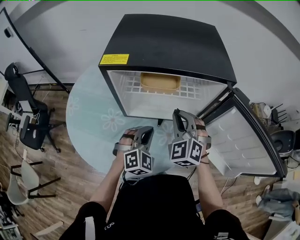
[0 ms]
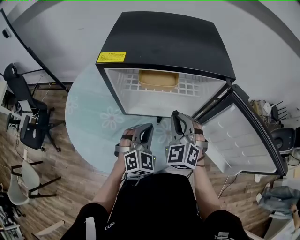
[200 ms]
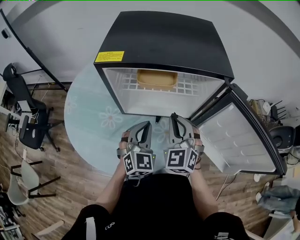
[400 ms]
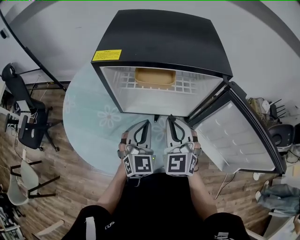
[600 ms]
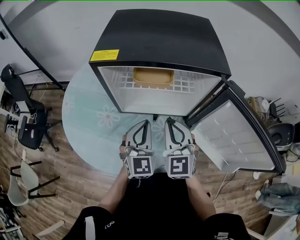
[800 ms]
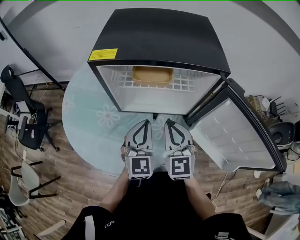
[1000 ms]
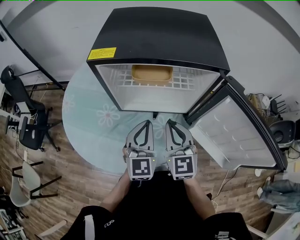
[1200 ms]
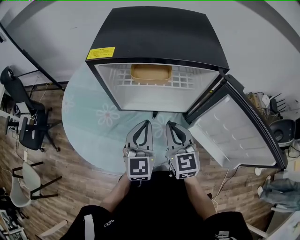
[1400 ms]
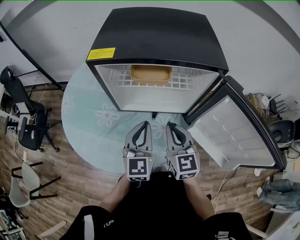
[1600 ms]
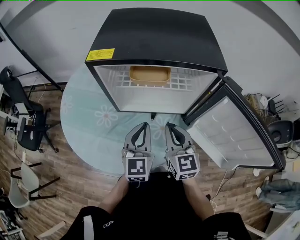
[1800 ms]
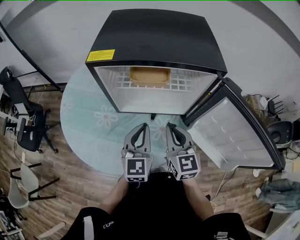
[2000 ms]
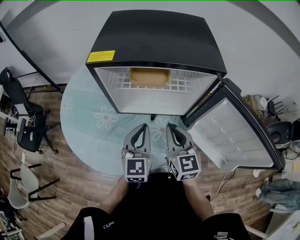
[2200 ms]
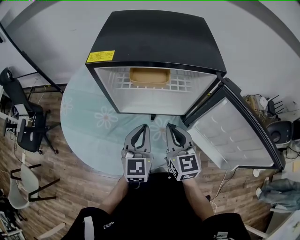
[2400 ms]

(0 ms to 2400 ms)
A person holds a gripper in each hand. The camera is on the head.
0 ms - 1200 ms: The left gripper is displaced upward by roughly 10 cm, and changes its angle by roughly 50 degrees, while the right gripper moves backward, roughly 5 cm, and turns by roughly 40 degrees.
1200 ms - 2400 ms: The grippers move only a little.

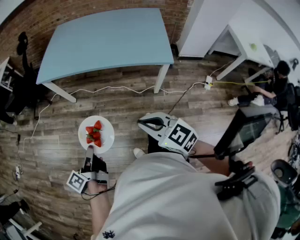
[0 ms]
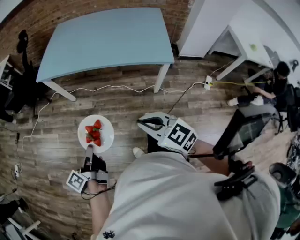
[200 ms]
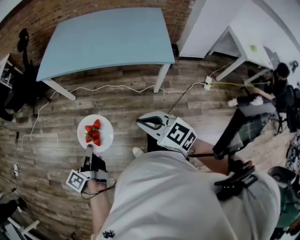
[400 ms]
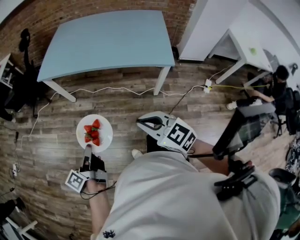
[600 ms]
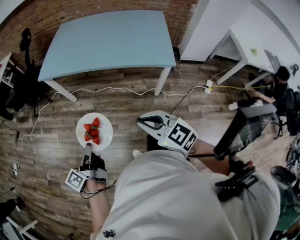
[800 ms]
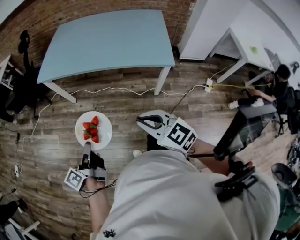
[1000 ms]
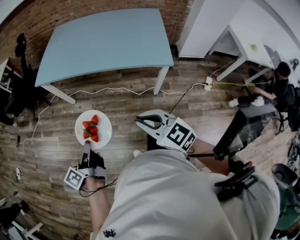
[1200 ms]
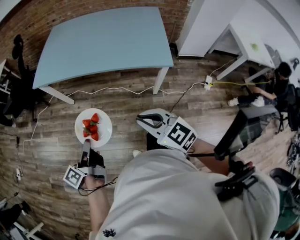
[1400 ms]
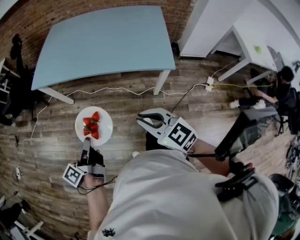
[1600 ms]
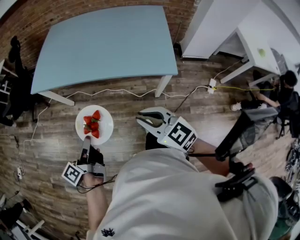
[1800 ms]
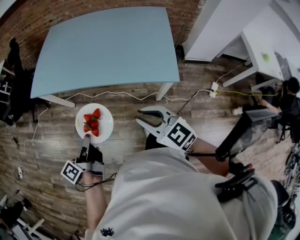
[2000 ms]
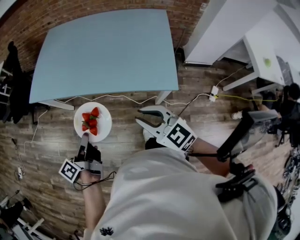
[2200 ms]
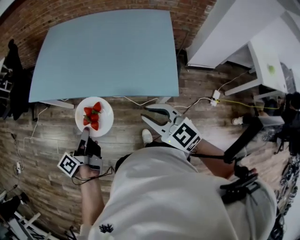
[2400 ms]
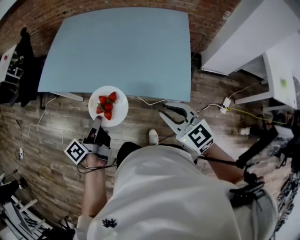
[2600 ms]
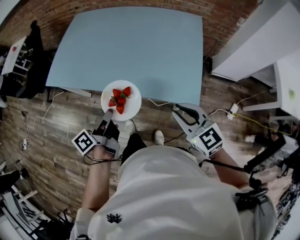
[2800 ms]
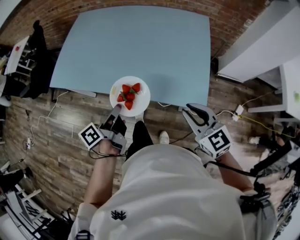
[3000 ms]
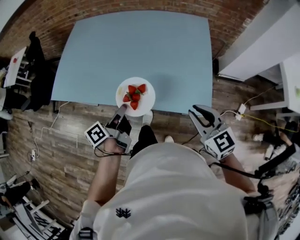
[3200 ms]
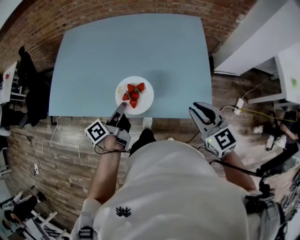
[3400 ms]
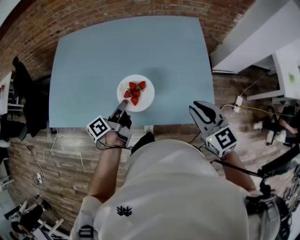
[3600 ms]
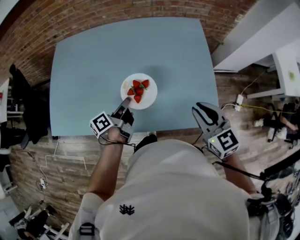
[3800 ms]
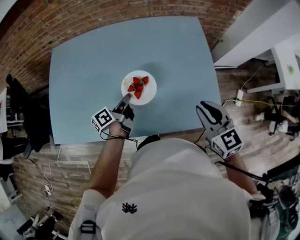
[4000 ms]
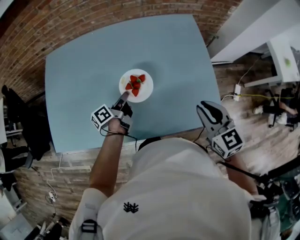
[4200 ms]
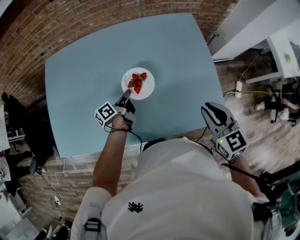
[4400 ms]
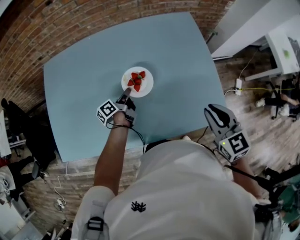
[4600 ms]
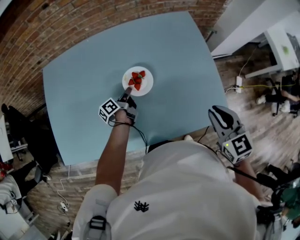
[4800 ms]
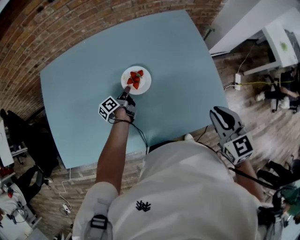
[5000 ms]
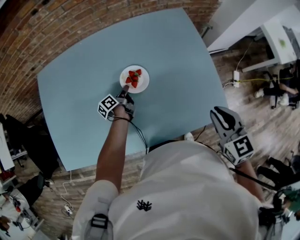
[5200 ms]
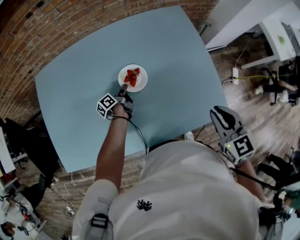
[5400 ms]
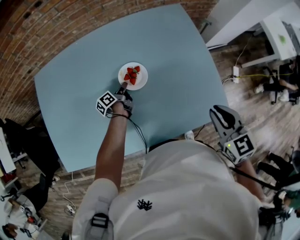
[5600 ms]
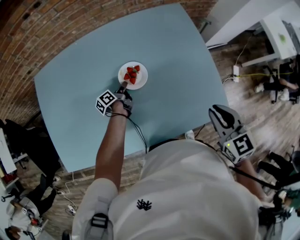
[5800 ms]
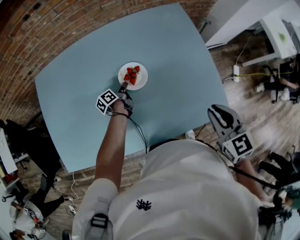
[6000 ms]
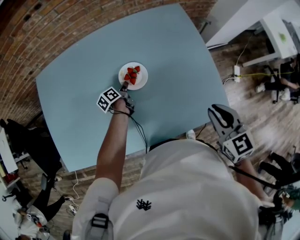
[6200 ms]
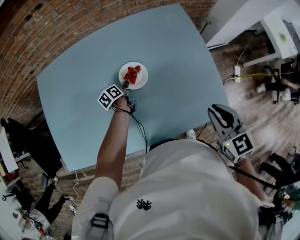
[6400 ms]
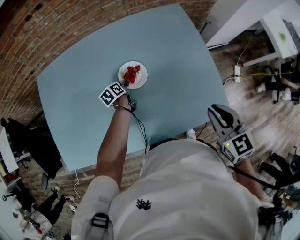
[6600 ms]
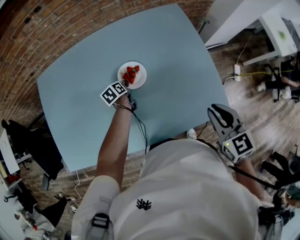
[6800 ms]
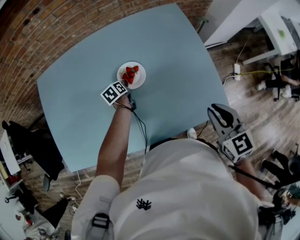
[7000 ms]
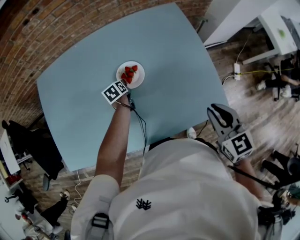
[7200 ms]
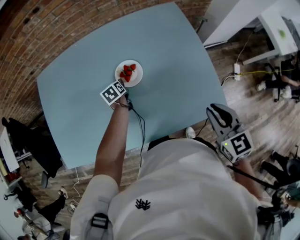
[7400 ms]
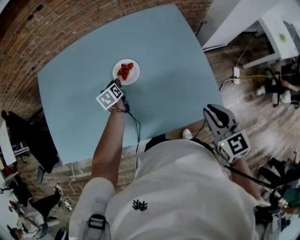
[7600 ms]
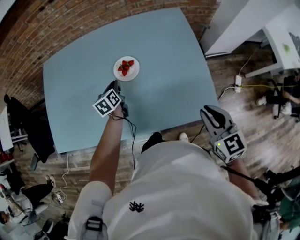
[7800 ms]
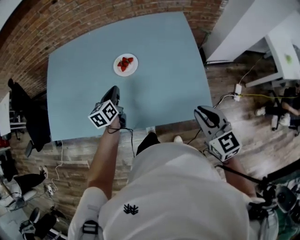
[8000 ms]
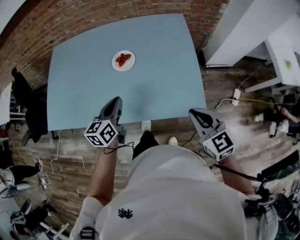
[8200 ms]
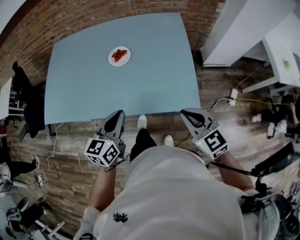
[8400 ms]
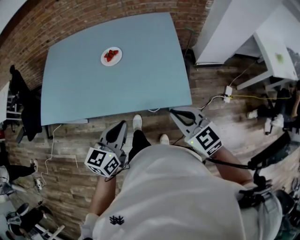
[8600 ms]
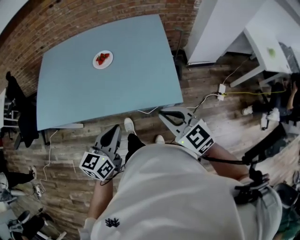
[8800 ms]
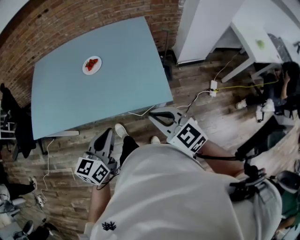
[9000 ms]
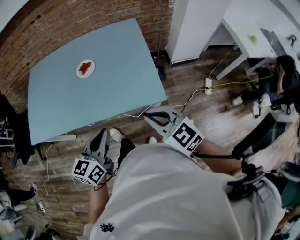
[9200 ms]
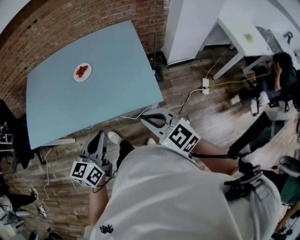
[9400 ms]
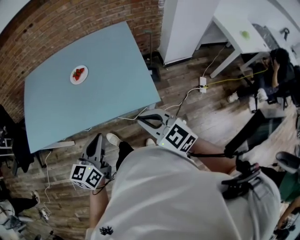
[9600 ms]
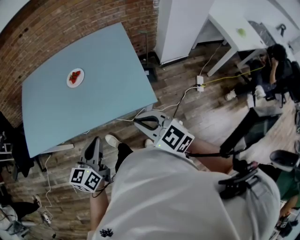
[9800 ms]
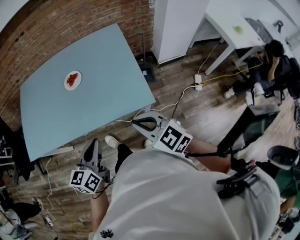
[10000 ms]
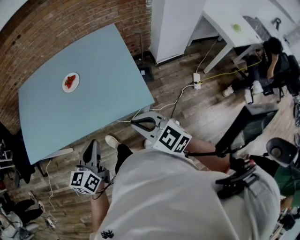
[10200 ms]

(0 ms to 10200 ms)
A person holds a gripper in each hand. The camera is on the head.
0 ms - 1400 ms: The right gripper moves about 5 cm, while the left gripper moves forward, roughly 5 cm.
1400 ms - 3000 ms: The grippers both shift forward and to the right by roughly 40 cm.
3000 ms - 4400 ms: The left gripper ends up roughly 40 cm from where it was, and changes its angle by some 20 degrees. Meanwhile the right gripper changes place by roughly 20 cm, and rotates some 30 degrees.
4400 ms - 5800 ms: The left gripper shifts about 15 cm downward and forward.
5800 ms - 7200 ms: The left gripper changes its angle by about 50 degrees, and opens.
7200 ms - 8800 ms: The right gripper shifts roughly 20 cm backward, and turns by roughly 40 degrees; the left gripper moves backward and upward, about 60 cm, tilts its fingers approximately 30 degrees upward, and closes its fingers.
8800 ms - 10200 ms: There are only small adjustments of the grippers.

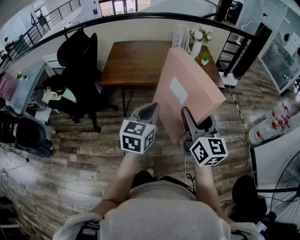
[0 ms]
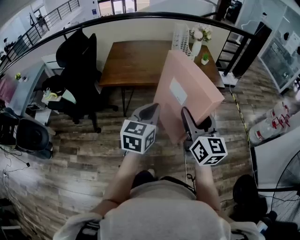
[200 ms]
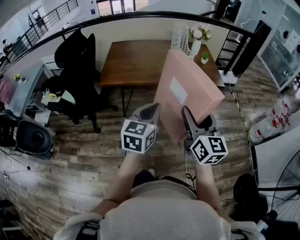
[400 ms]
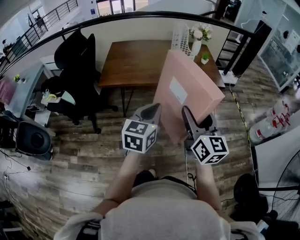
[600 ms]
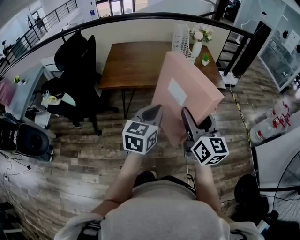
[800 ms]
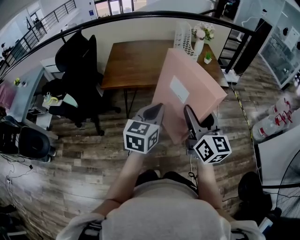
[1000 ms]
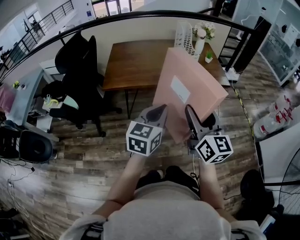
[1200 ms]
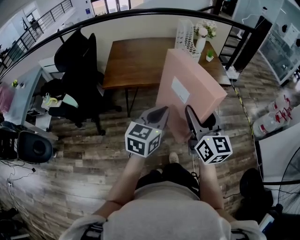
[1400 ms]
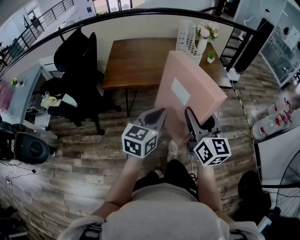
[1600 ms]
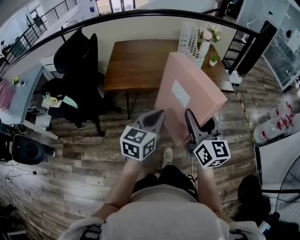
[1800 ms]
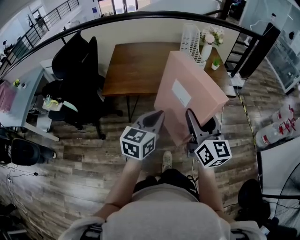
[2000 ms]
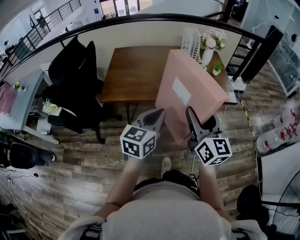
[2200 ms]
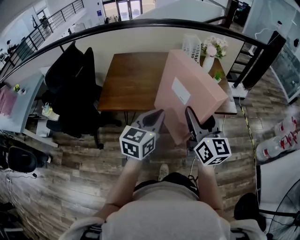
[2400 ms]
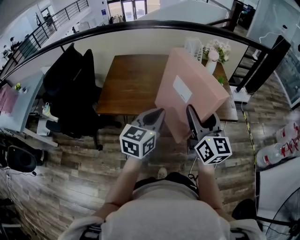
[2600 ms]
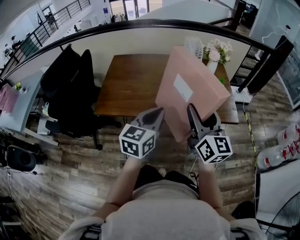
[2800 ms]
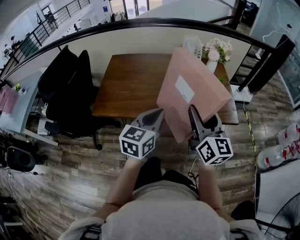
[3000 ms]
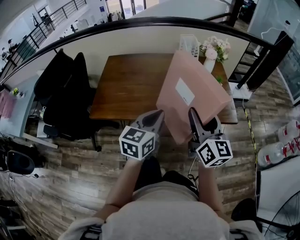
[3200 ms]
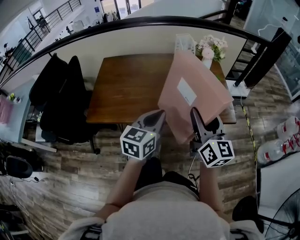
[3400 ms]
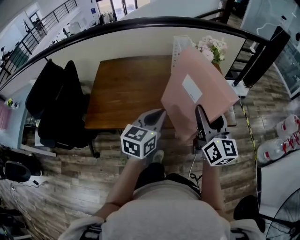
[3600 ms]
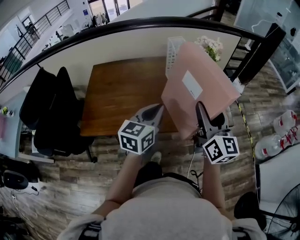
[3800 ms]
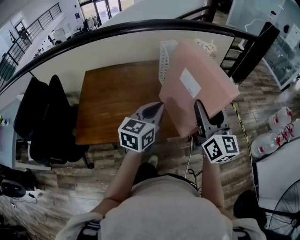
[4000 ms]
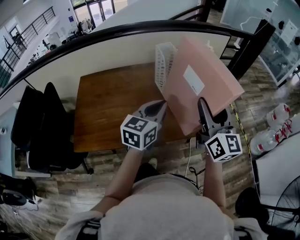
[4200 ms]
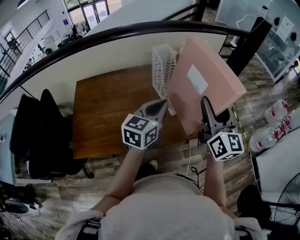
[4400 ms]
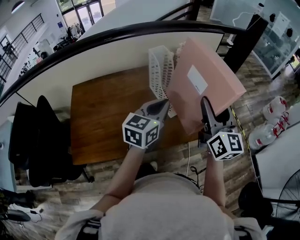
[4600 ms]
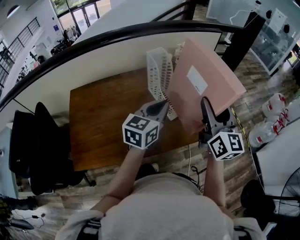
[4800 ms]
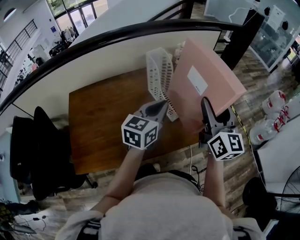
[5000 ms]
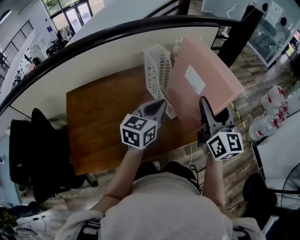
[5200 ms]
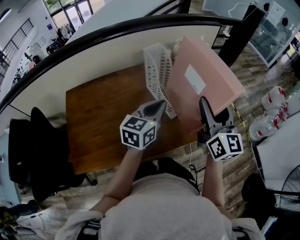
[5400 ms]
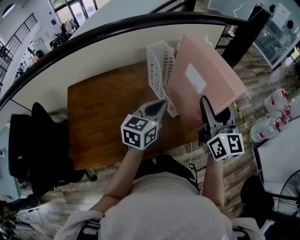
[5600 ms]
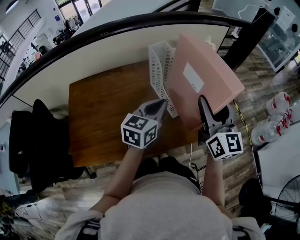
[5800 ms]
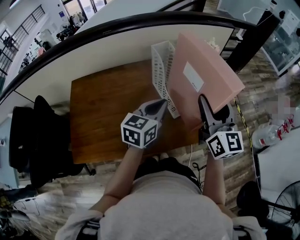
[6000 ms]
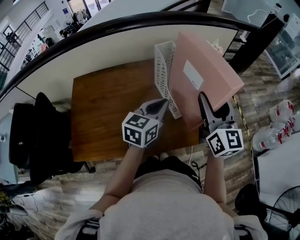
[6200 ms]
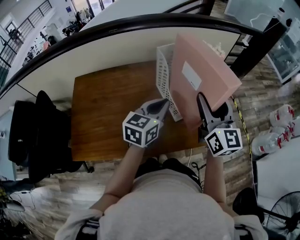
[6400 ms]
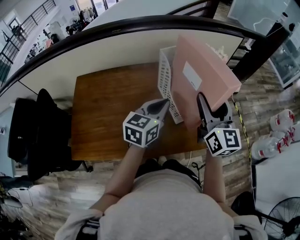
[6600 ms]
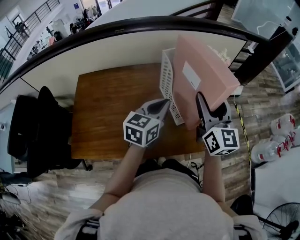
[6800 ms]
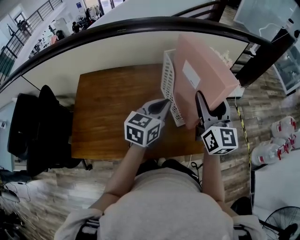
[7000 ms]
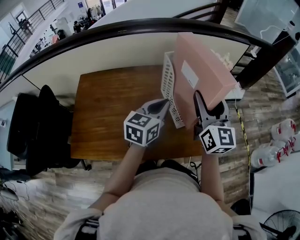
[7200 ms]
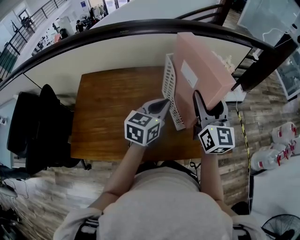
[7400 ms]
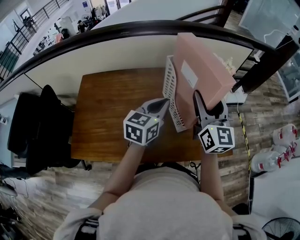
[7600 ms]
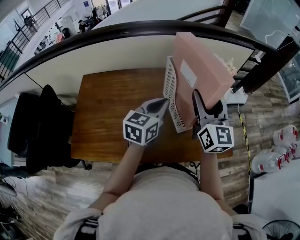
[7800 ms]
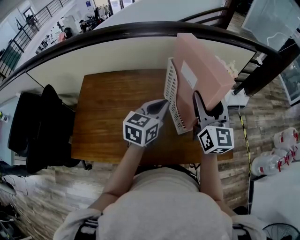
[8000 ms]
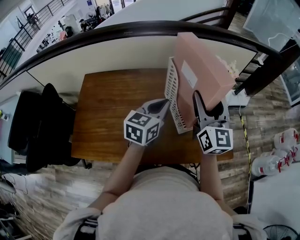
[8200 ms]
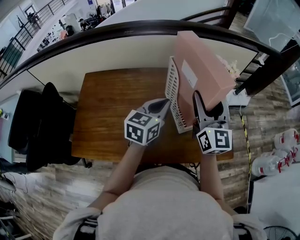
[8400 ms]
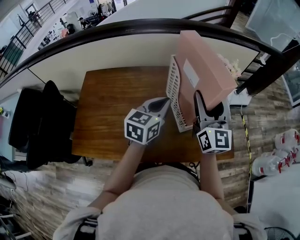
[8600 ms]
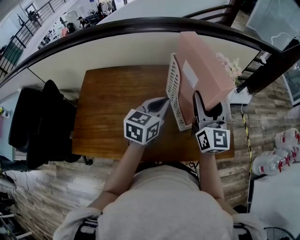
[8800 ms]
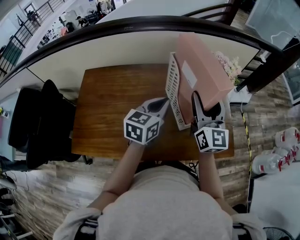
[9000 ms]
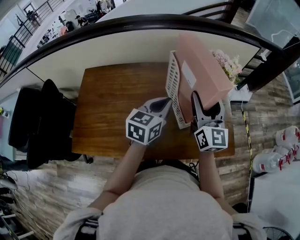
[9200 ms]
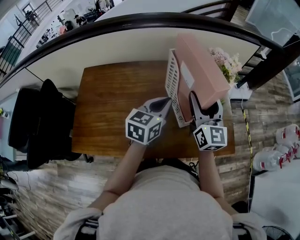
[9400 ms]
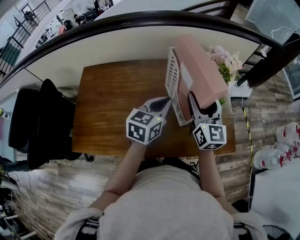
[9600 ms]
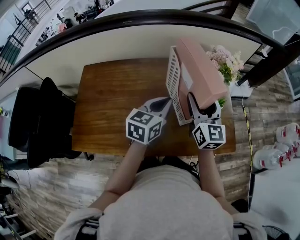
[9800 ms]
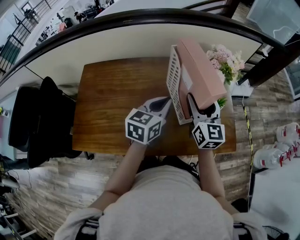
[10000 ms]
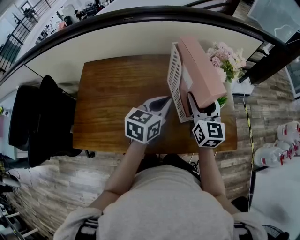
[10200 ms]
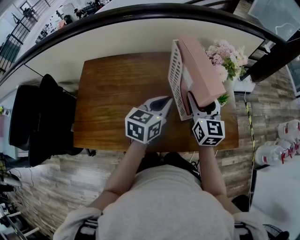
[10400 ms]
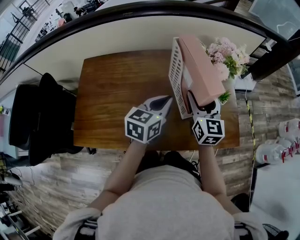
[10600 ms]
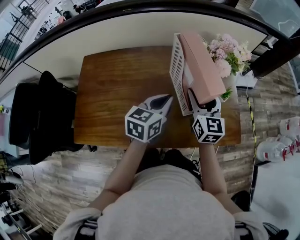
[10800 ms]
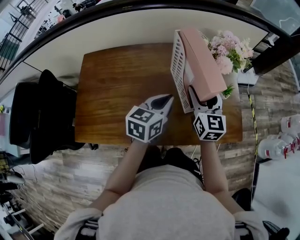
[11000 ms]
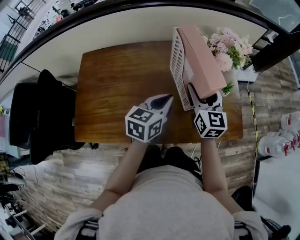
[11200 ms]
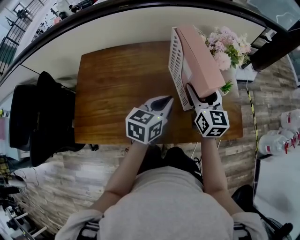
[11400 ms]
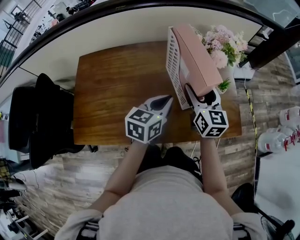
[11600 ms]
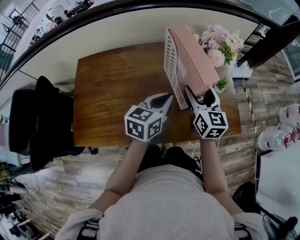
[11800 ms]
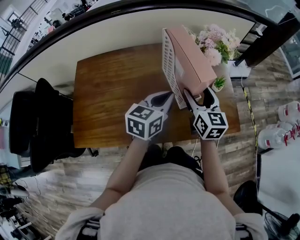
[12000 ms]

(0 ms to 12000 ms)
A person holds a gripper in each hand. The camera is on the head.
0 ms - 1600 ms: The right gripper moves to the left, roughly 5 cm. The left gripper shifts by roughly 5 cm.
1600 ms - 3000 ms: Both grippers move forward, about 25 cm.
3000 ms - 4400 ms: The right gripper moves forward and to the right, about 15 cm. The left gripper goes approximately 20 cm forward.
4400 ms - 6000 ms: The grippers both shift forward by some 5 cm.
6000 ms - 7600 ms: The left gripper shifts approximately 5 cm forward. Meanwhile the right gripper travels forward and to the left by some 10 cm.
7600 ms - 9000 ms: The grippers stay close to where they were, moving slightly.
9000 ms - 10400 ms: The right gripper travels downward by approximately 10 cm.
10400 ms - 12000 ms: The grippers move only a little.
